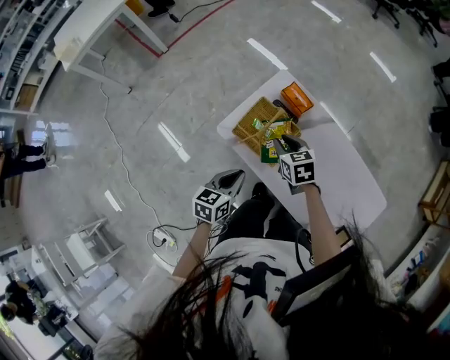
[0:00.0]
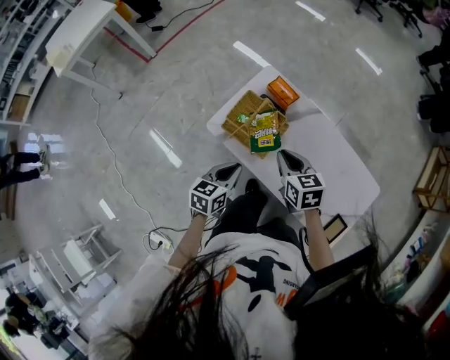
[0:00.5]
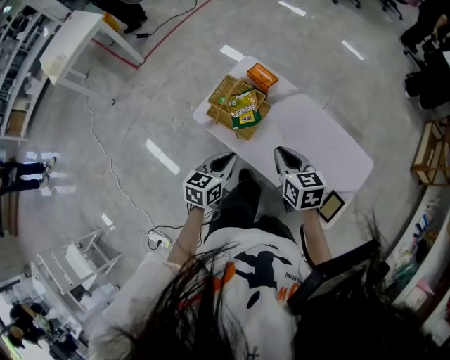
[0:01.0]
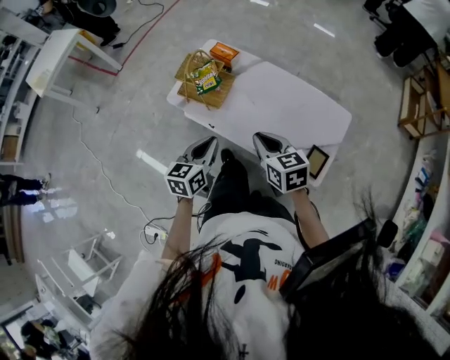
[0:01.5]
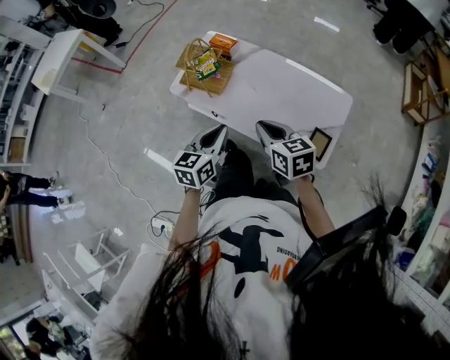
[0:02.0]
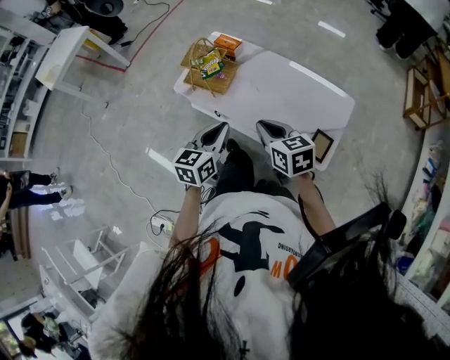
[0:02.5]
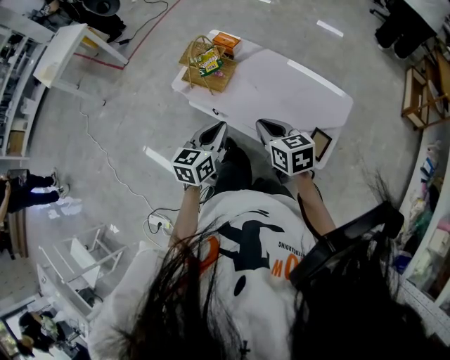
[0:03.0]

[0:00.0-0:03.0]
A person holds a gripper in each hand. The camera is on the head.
0:00.0 to 0:01.5: The right gripper is displaced backward, to the right and upward by roughly 40 cm, while the left gripper shifts approximately 25 cm backward, to the right and upward.
0:01.5 to 0:03.0: The grippers both shift backward by roughly 5 cm.

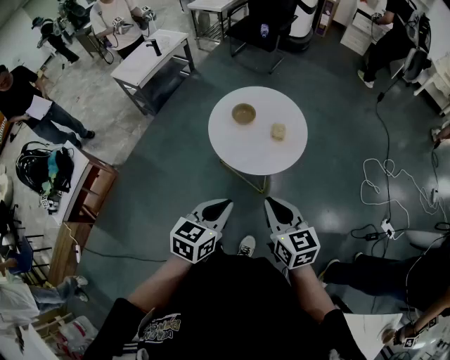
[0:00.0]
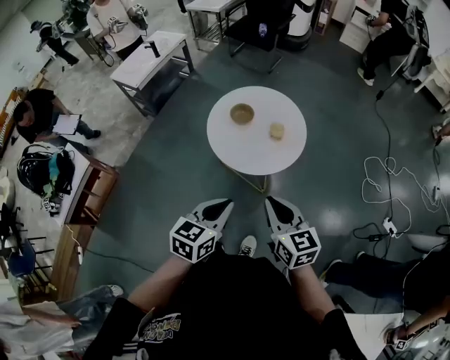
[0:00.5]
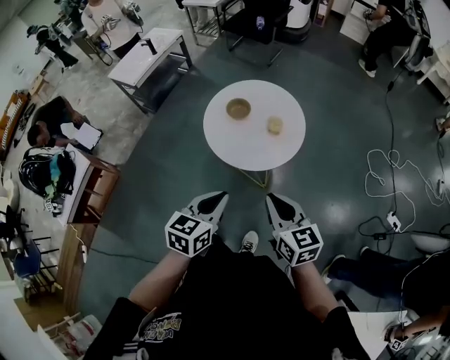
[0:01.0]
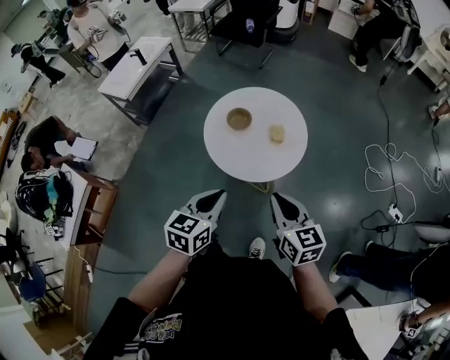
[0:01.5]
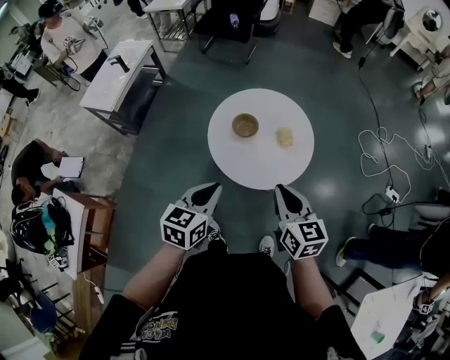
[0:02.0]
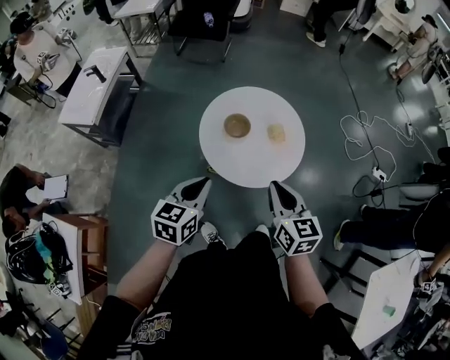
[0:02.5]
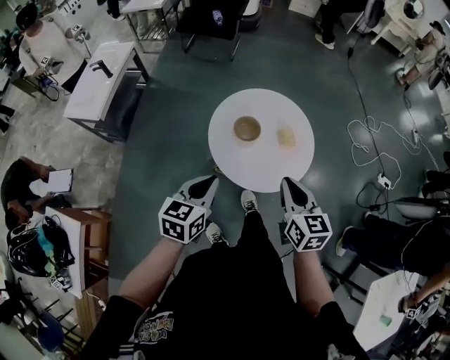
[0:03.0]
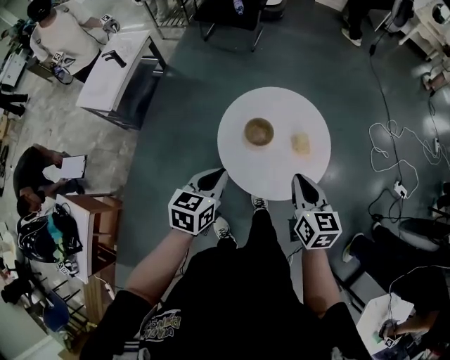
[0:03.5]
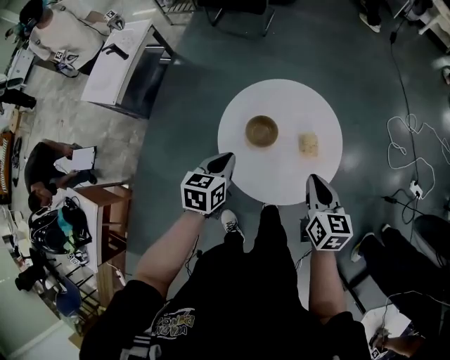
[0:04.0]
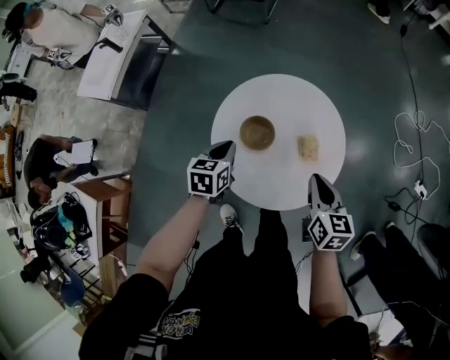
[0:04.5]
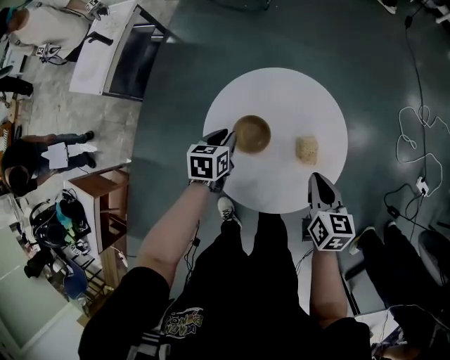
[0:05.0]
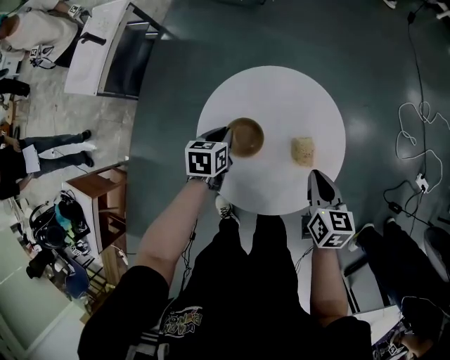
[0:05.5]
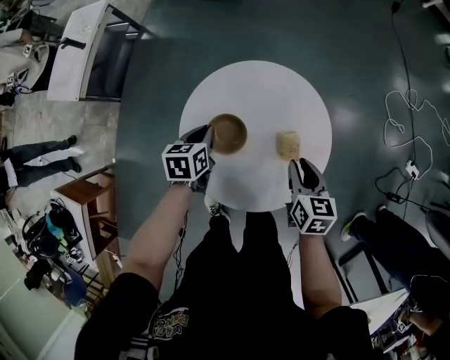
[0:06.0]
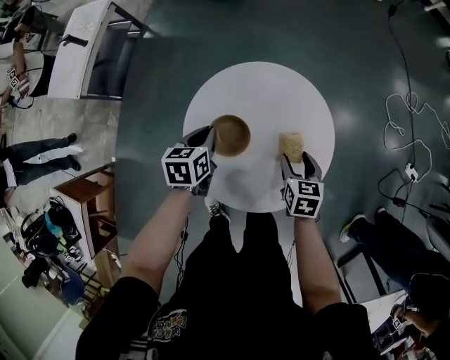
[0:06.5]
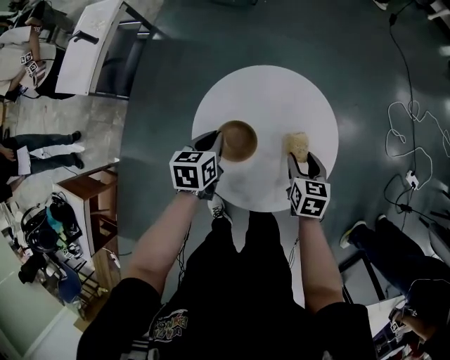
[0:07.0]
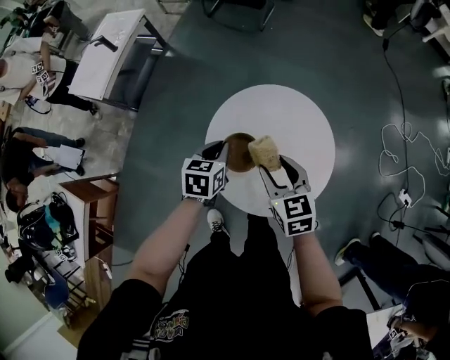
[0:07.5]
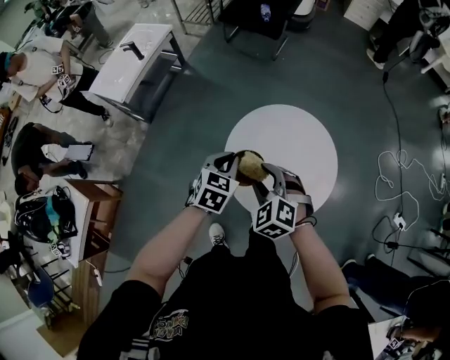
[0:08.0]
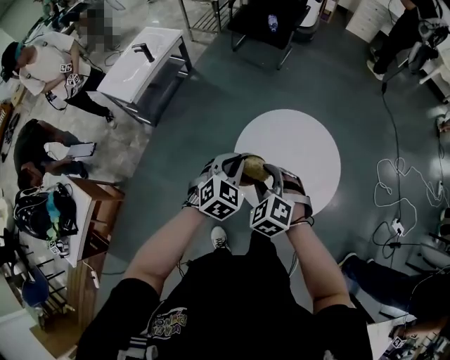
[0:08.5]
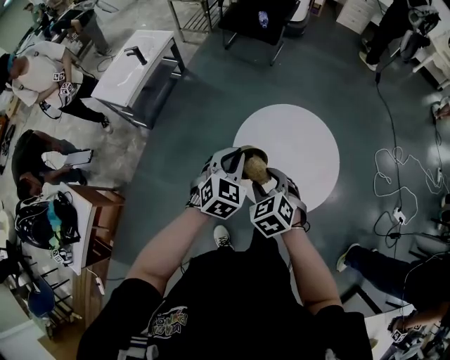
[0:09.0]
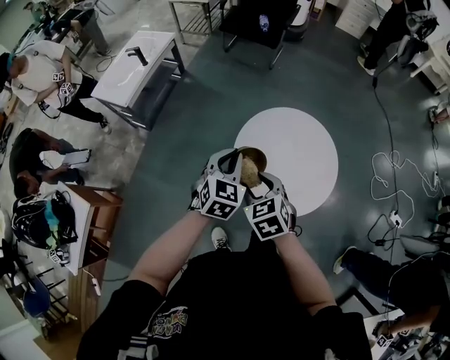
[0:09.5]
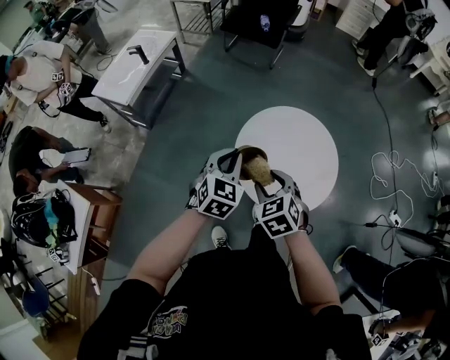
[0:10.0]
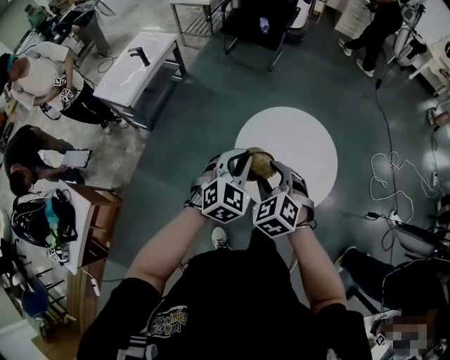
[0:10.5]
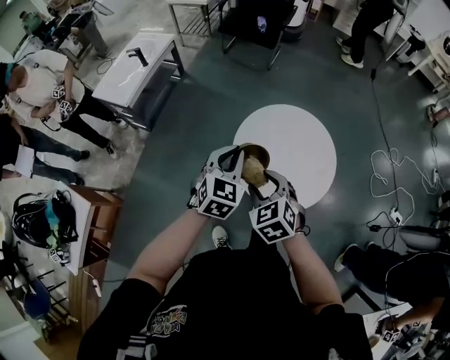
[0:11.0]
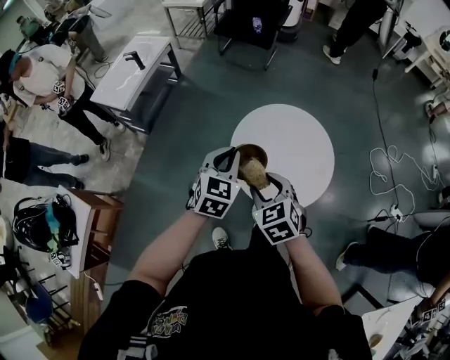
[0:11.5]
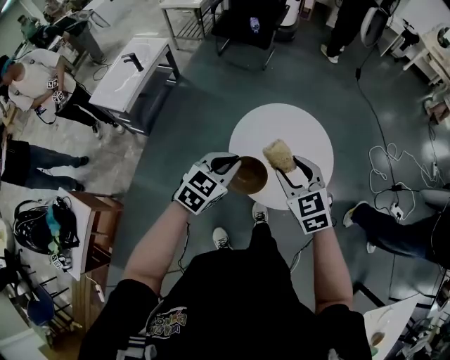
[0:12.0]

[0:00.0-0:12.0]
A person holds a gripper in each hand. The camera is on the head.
0:00.0 to 0:02.0: The grippers both shift forward and to the left by about 20 cm. The right gripper swivels approximately 20 degrees.
0:02.0 to 0:04.0: Both grippers travel together forward and downward, some 20 cm.
0:04.0 to 0:06.0: The two grippers go roughly 15 cm downward and forward.
0:06.0 to 0:08.0: The right gripper travels to the left and upward by approximately 25 cm, rotates around the line of its fingers by some 70 degrees, counterclockwise from behind, and opens its fingers, while the left gripper goes roughly 20 cm upward and backward, and swivels approximately 30 degrees.
0:08.0 to 0:10.0: The right gripper changes place by approximately 5 cm, and swivels approximately 30 degrees; the left gripper goes approximately 5 cm upward.
0:10.0 to 0:12.0: The left gripper shifts by approximately 5 cm, and swivels roughly 20 degrees; the right gripper heads upward and to the right, covering roughly 10 cm.

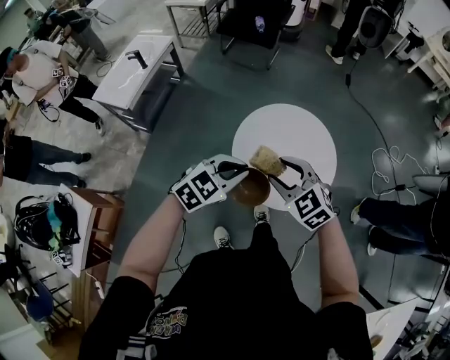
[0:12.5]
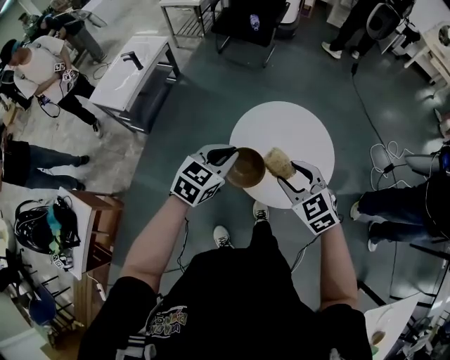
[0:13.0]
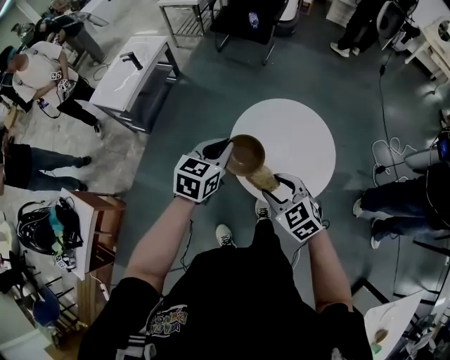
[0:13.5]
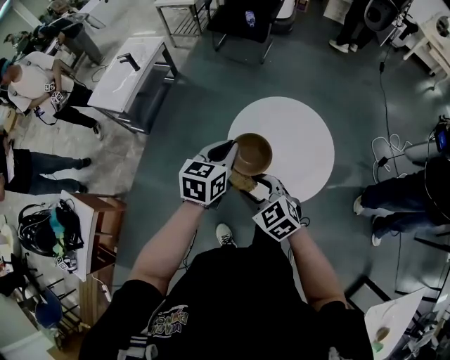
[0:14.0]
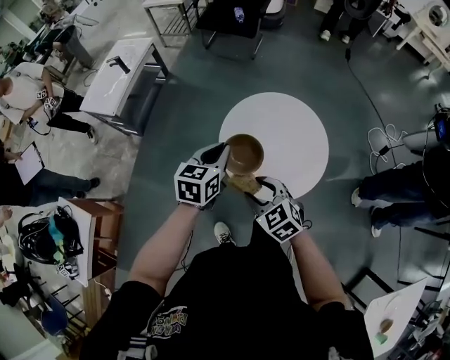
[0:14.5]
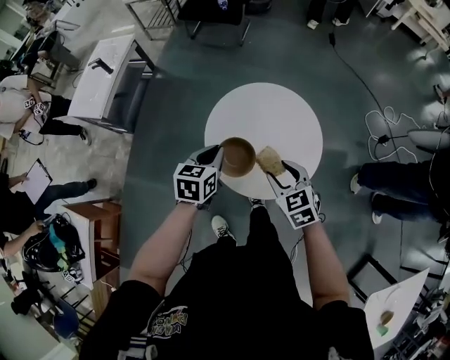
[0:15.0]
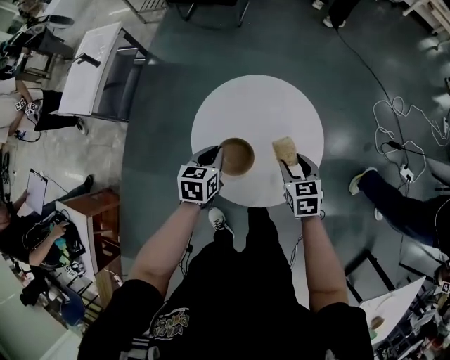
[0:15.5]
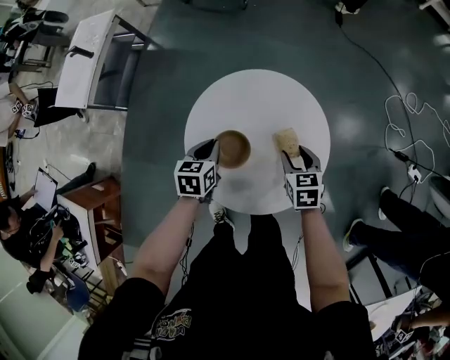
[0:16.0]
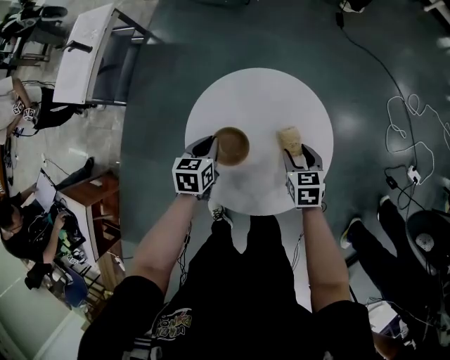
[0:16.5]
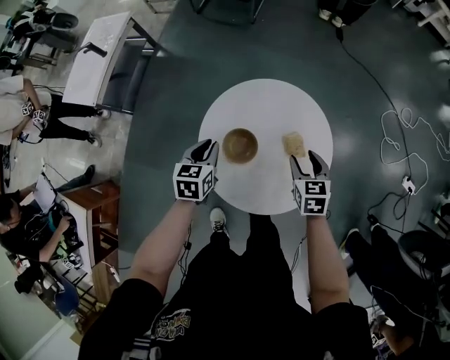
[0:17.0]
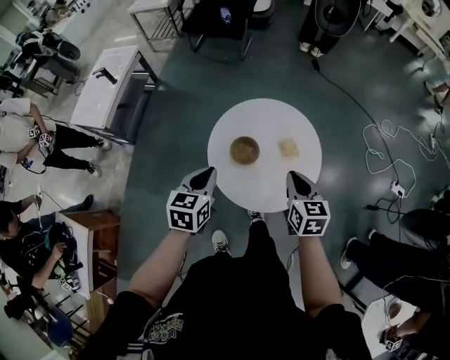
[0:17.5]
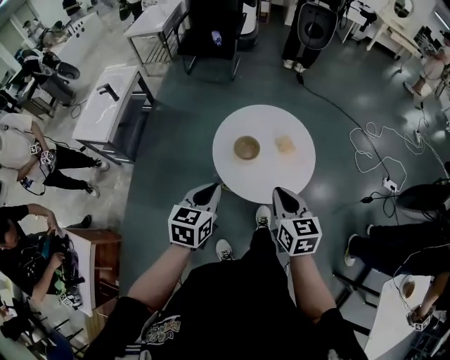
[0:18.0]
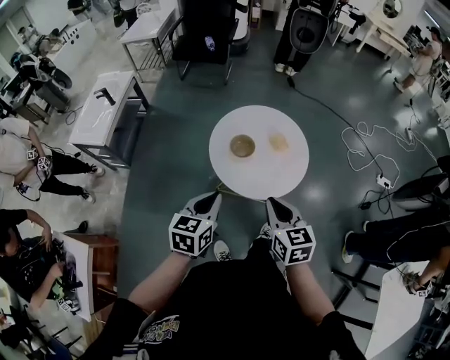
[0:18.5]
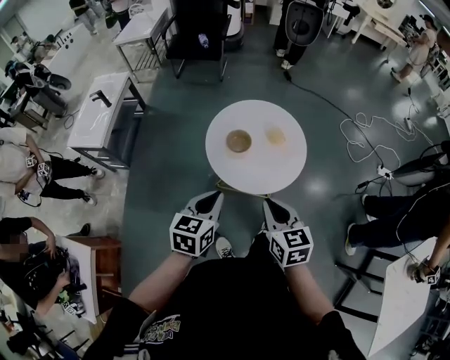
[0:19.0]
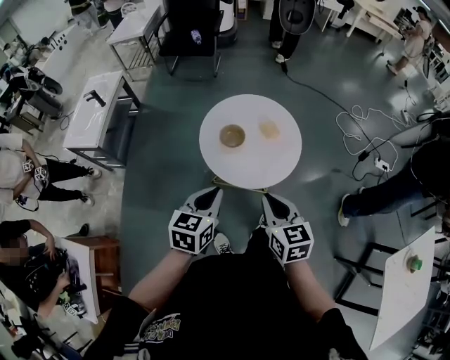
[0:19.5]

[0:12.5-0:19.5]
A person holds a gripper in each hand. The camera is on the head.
0:12.5 to 0:14.5: The right gripper moves downward and backward, approximately 10 cm, and reaches about 5 cm to the left, then returns. The left gripper heads forward, covering roughly 5 cm, and rotates approximately 40 degrees.
0:14.5 to 0:16.0: The right gripper travels to the right, forward and downward by roughly 35 cm, and changes its angle by roughly 40 degrees, while the left gripper heads downward and forward, covering roughly 25 cm, and changes its angle by some 20 degrees.
0:16.0 to 0:17.5: Both grippers move upward and backward, approximately 20 cm. The right gripper turns by roughly 20 degrees, and closes up.
0:17.5 to 0:19.5: The two grippers go some 20 cm backward.

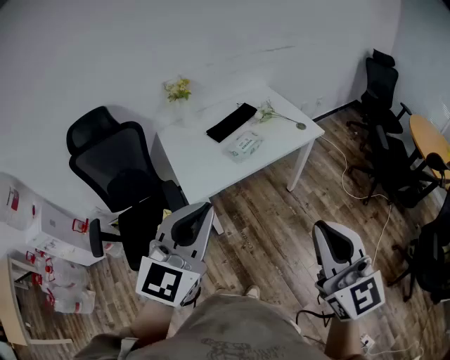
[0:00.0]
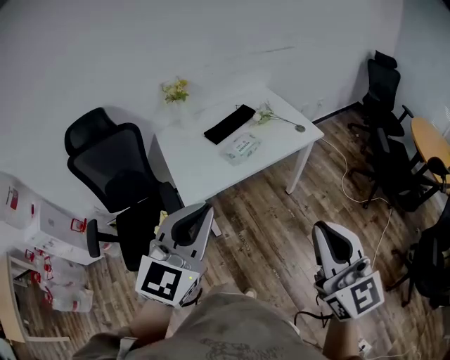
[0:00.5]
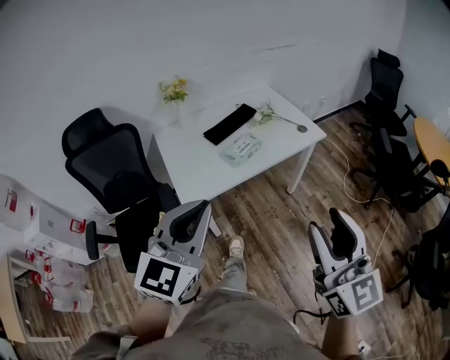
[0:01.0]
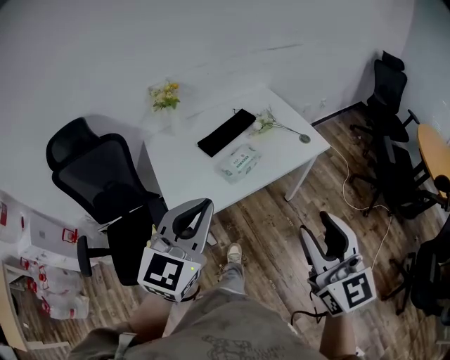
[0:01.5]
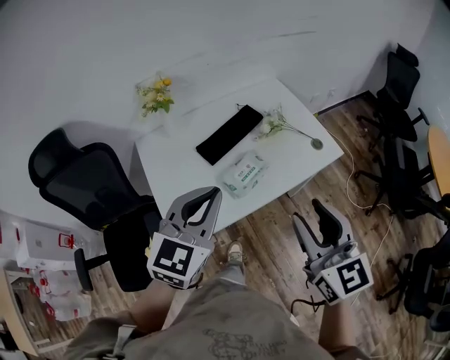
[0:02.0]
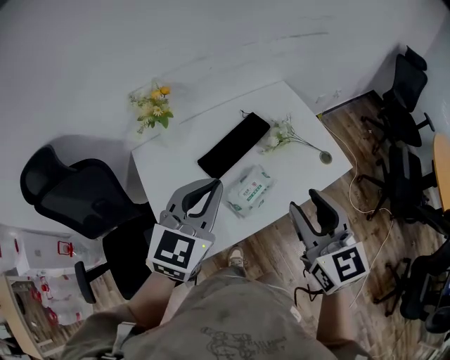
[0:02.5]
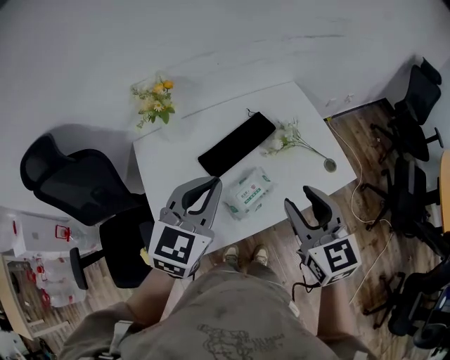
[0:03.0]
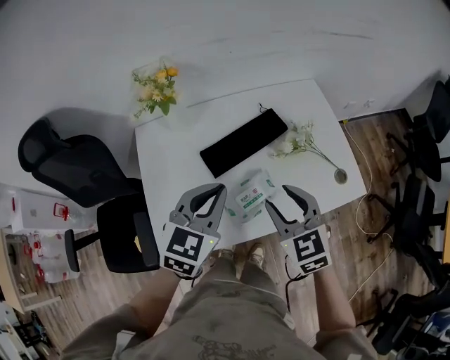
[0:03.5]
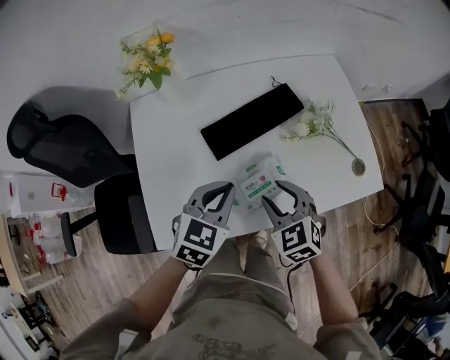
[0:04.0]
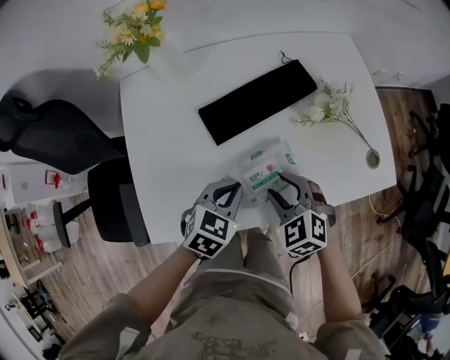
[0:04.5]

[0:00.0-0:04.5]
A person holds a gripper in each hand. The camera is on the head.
0:00.0 to 0:02.0: The two grippers go approximately 35 cm forward. The right gripper opens up.
0:02.0 to 0:04.5: The left gripper heads downward, covering approximately 35 cm, and angles its fingers downward, by roughly 30 degrees; the right gripper heads downward and forward, covering approximately 40 cm, and tilts its fingers roughly 40 degrees downward.
